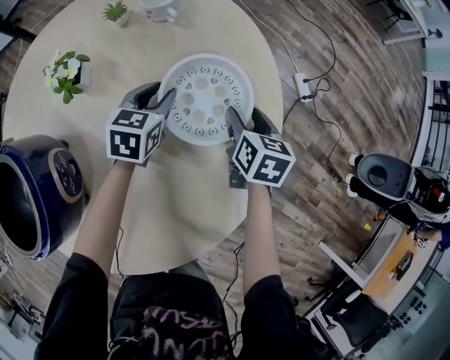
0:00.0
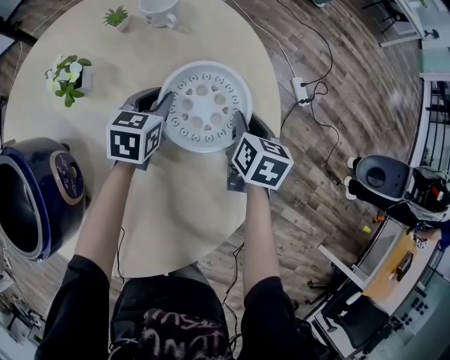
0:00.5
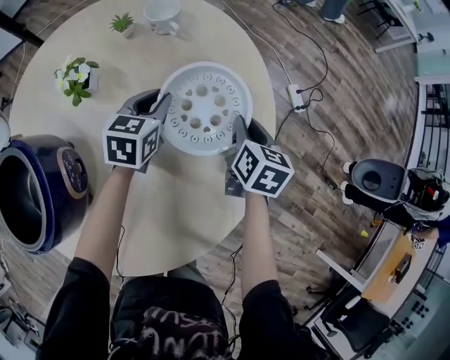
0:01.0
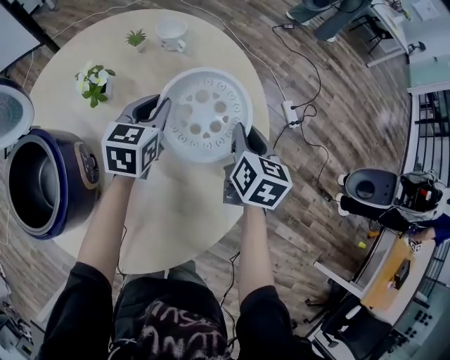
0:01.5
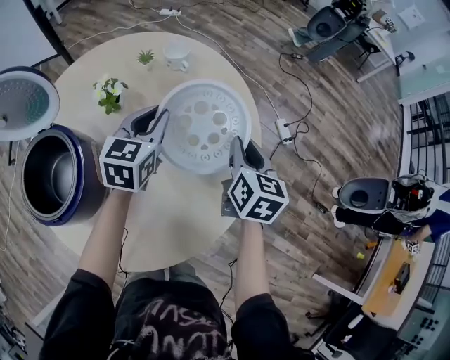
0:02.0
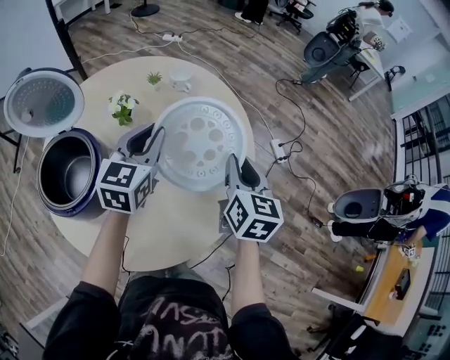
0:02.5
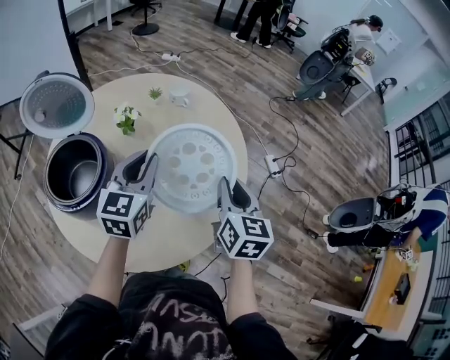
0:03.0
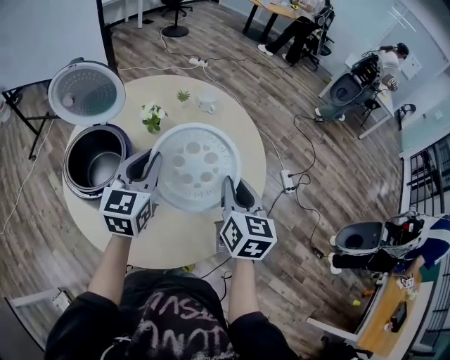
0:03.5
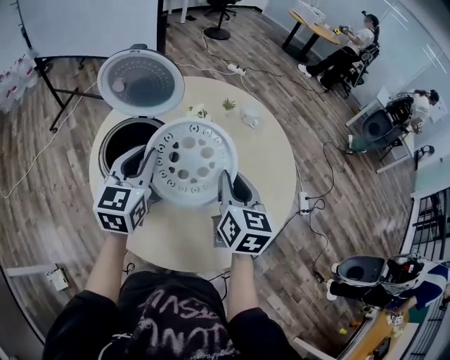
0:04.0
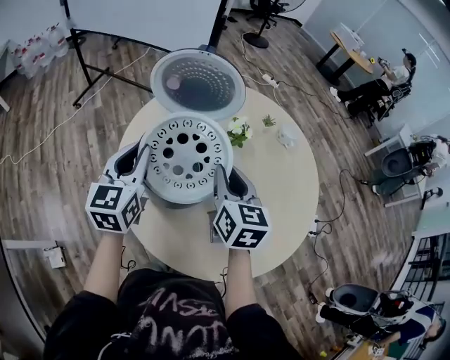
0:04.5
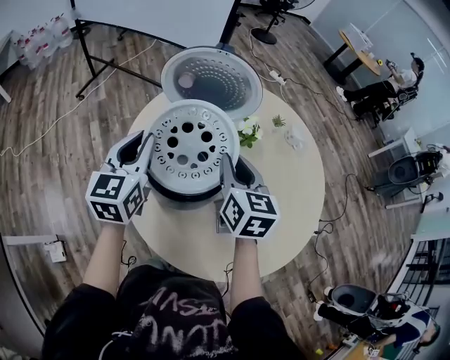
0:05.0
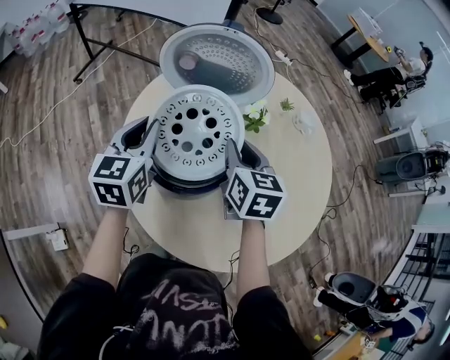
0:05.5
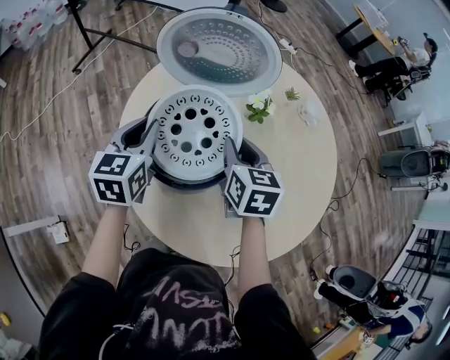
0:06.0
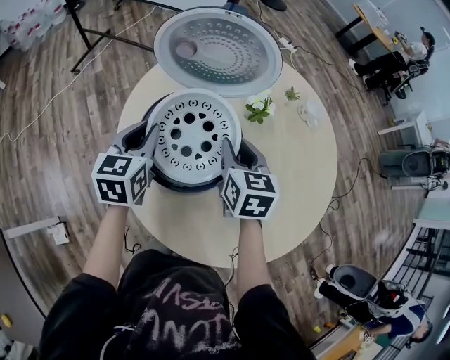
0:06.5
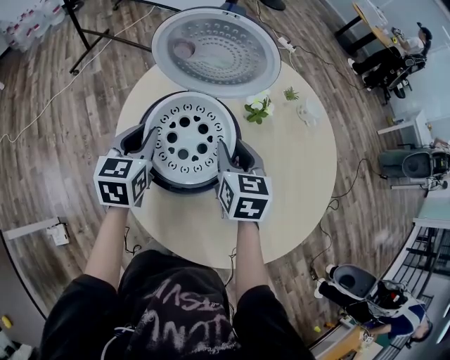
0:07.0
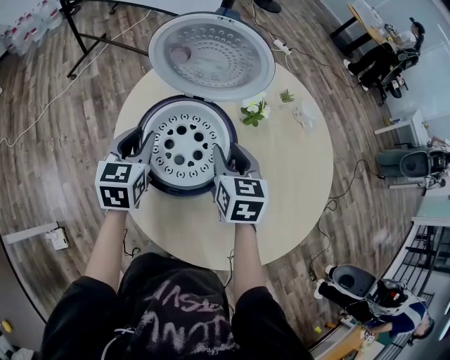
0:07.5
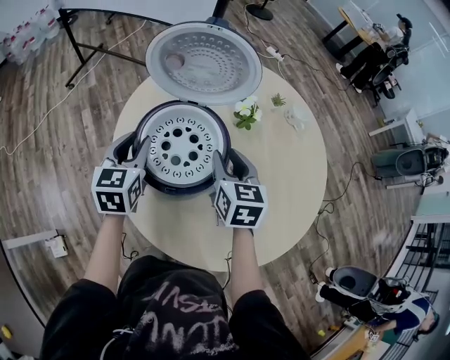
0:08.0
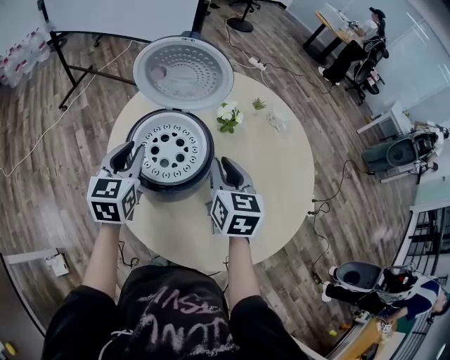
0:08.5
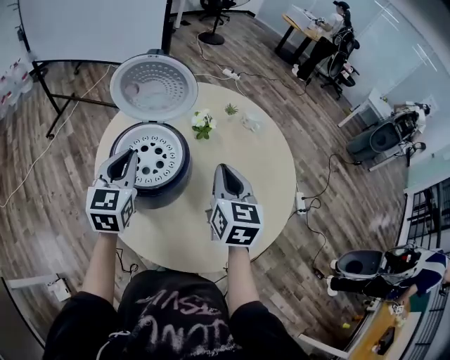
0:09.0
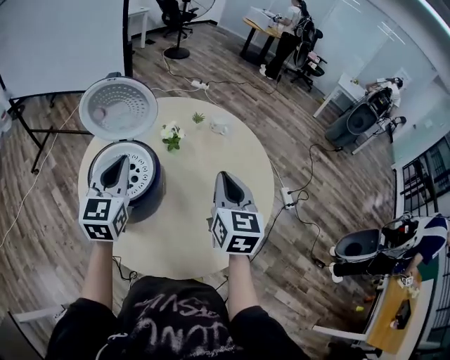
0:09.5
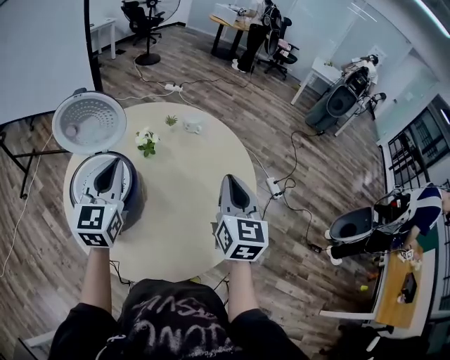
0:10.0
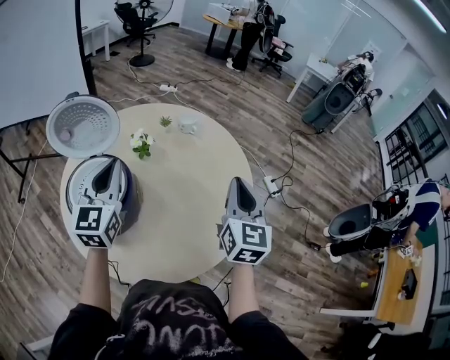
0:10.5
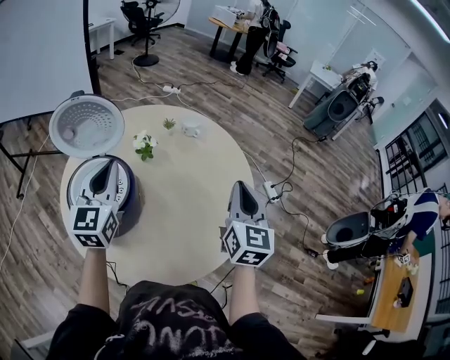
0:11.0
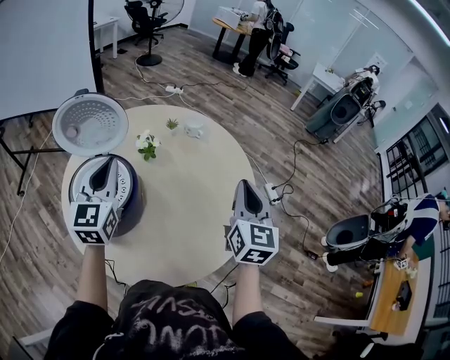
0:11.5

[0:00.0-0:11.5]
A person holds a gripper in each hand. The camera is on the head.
0:00.0 to 0:02.0: The right gripper heads upward and backward, covering roughly 20 cm, and closes. Meanwhile the left gripper is displaced upward by approximately 20 cm.
0:02.0 to 0:04.0: The right gripper moves to the left, upward and backward, about 25 cm, and turns by some 30 degrees; the left gripper moves to the left, backward and upward, roughly 30 cm, and changes its angle by about 30 degrees.
0:04.0 to 0:06.0: The left gripper is displaced to the left and downward by approximately 20 cm. Meanwhile the right gripper moves to the left, forward and downward, some 20 cm, and swivels some 20 degrees.
0:06.0 to 0:07.5: The grippers stay close to where they were, moving slightly.
0:07.5 to 0:09.5: The left gripper shifts some 20 cm upward and to the right, changes its angle by about 30 degrees, and closes up; the right gripper moves to the right, upward and backward, roughly 25 cm, rotates about 30 degrees, and closes its fingers.
0:09.5 to 0:11.5: The right gripper travels to the right by some 10 cm, while the left gripper ends up some 5 cm from where it was.

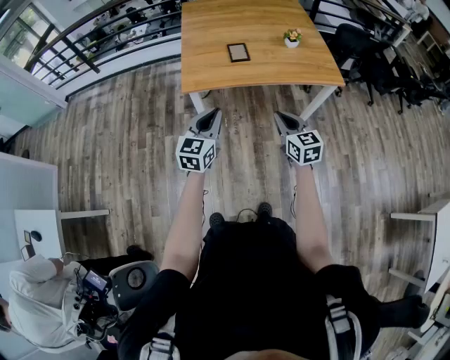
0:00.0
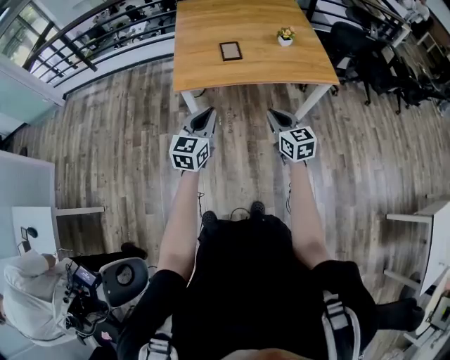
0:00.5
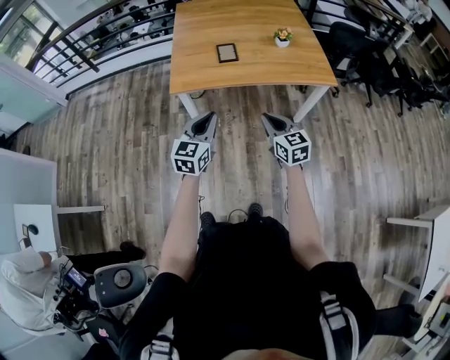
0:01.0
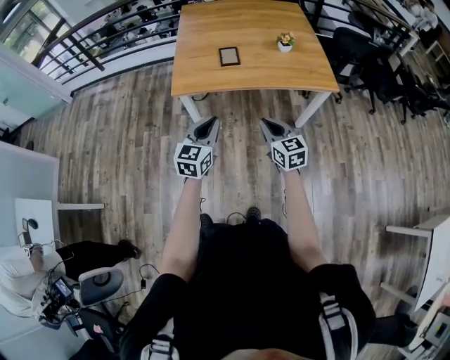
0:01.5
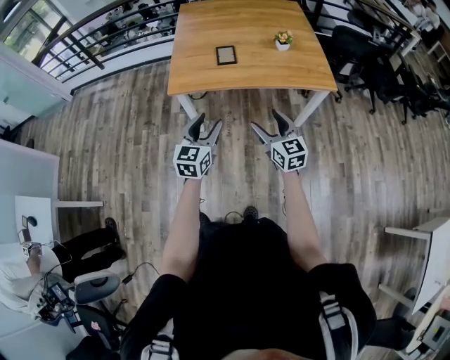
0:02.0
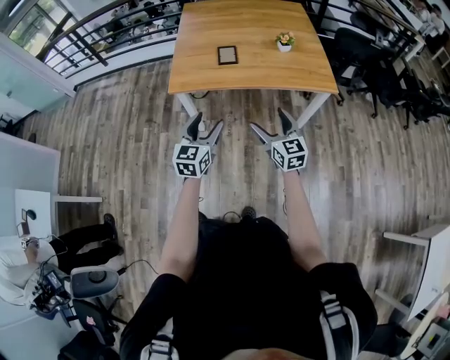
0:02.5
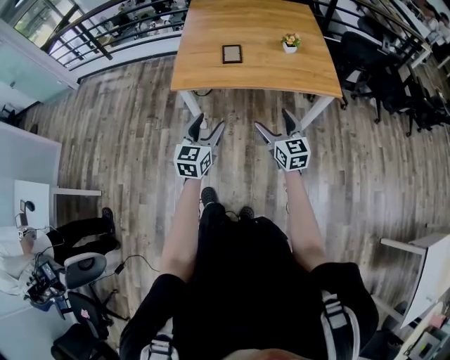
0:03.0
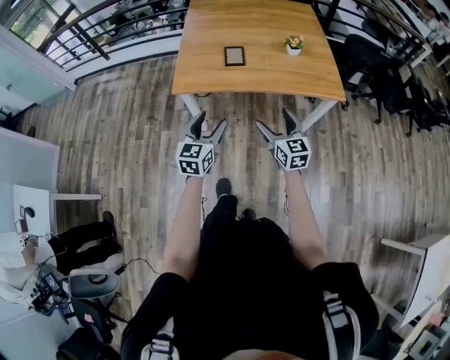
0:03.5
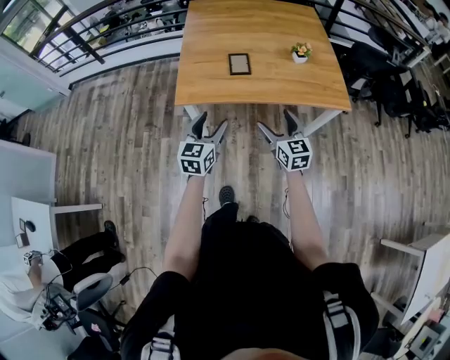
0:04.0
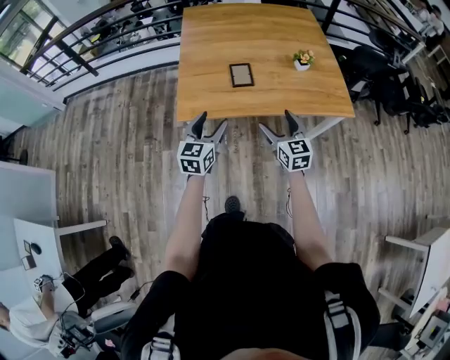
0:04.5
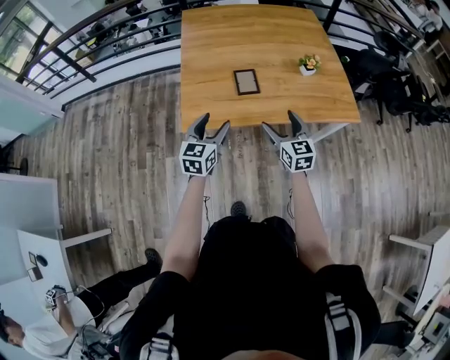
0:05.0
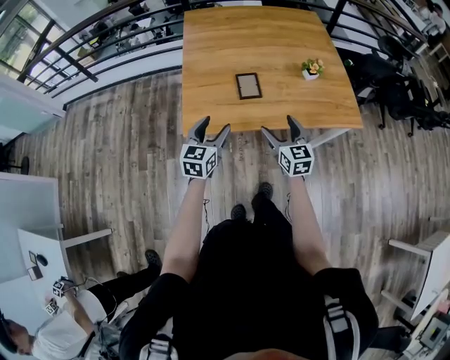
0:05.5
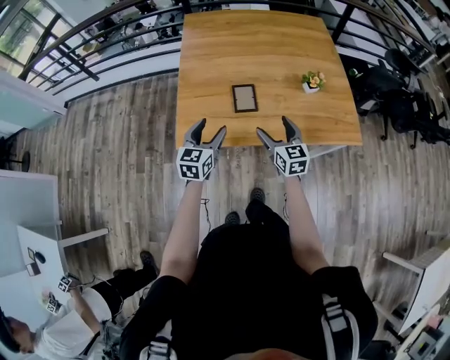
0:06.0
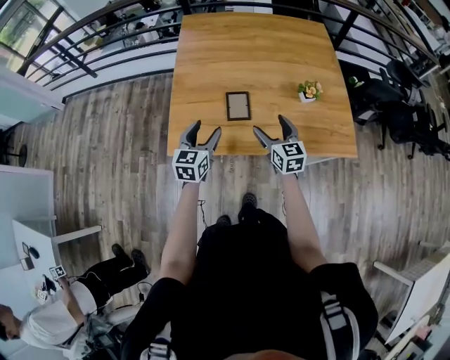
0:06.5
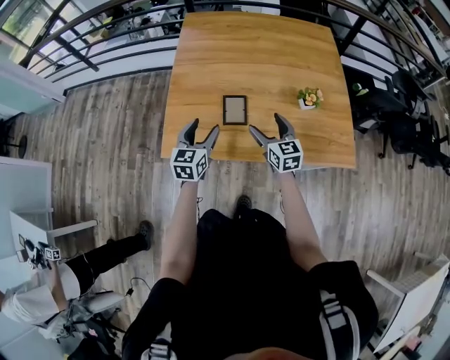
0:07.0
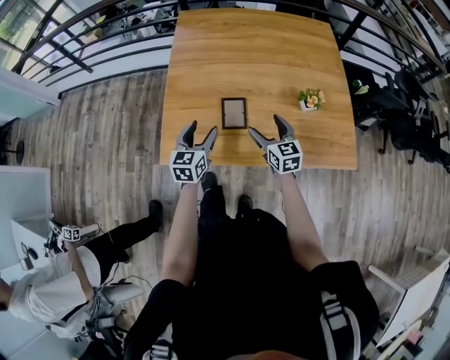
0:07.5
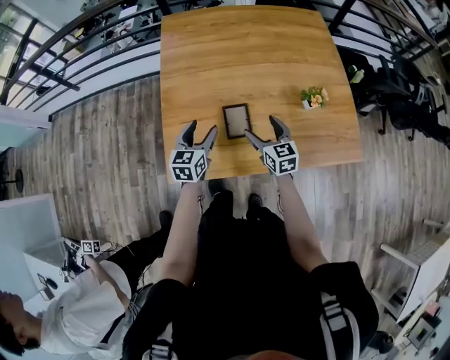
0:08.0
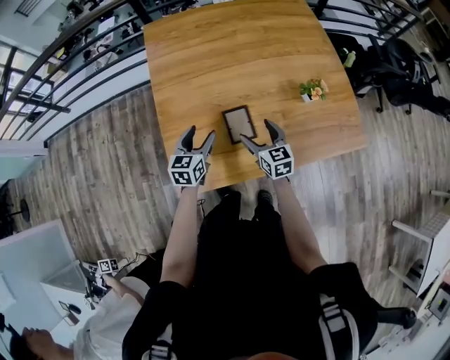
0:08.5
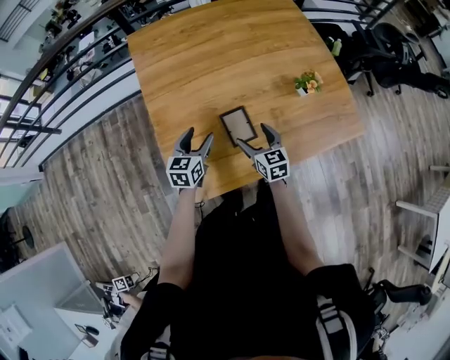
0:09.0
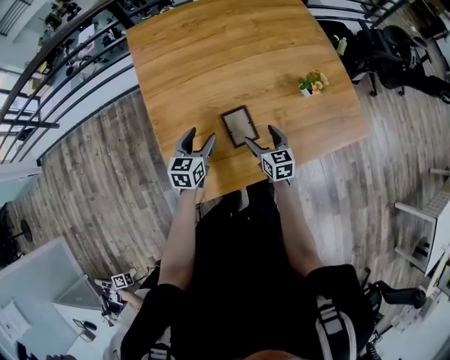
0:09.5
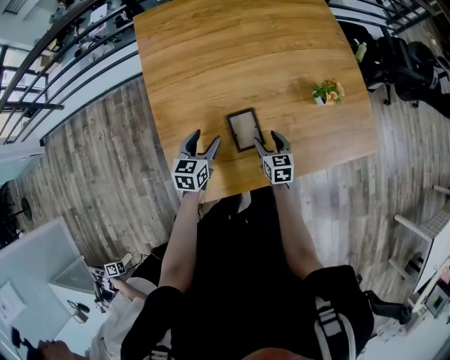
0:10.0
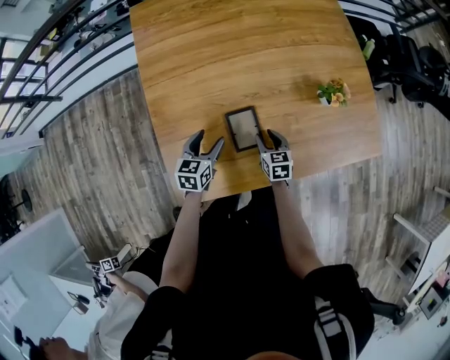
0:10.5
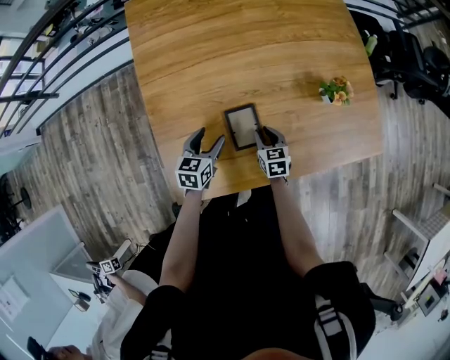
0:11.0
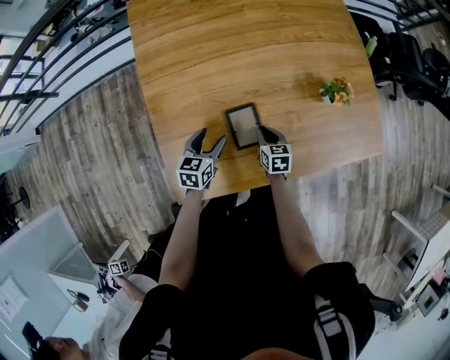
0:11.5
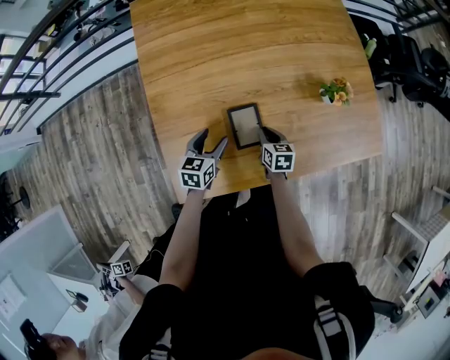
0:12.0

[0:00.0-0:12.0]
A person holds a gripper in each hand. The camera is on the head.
0:00.0 to 0:02.0: The two grippers go some 10 cm to the right. The left gripper opens; the right gripper opens.
0:02.0 to 0:04.0: Both grippers travel together forward, approximately 10 cm.
0:04.0 to 0:06.0: Both grippers travel together forward, about 20 cm.
0:06.0 to 0:08.0: The two grippers go some 15 cm forward.
0:08.0 to 0:10.0: The right gripper travels downward by some 15 cm, and rotates some 20 degrees. Meanwhile the left gripper shifts roughly 10 cm downward and forward.
0:10.0 to 0:12.0: The right gripper closes up.

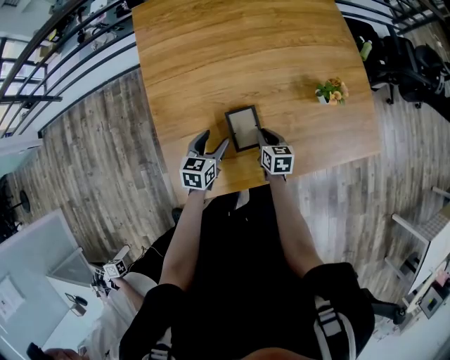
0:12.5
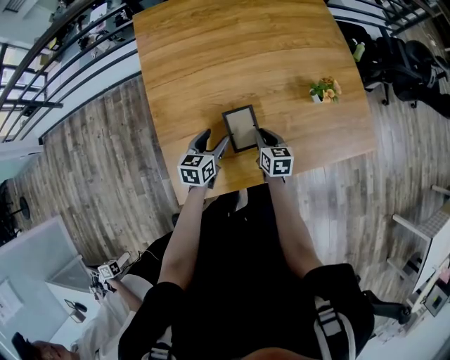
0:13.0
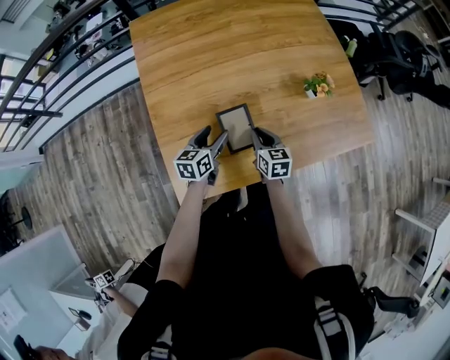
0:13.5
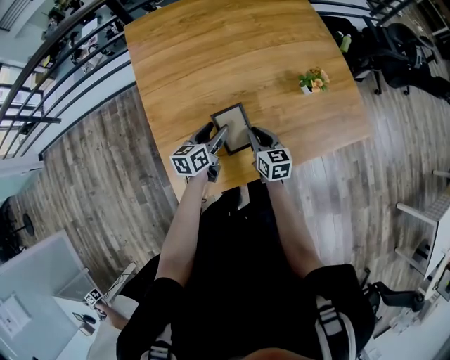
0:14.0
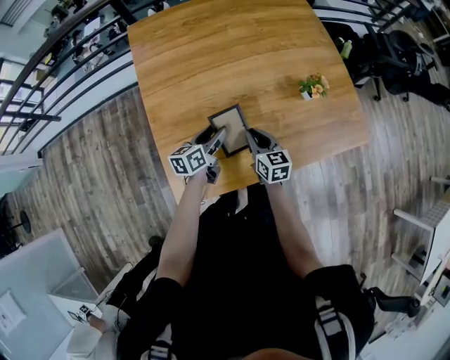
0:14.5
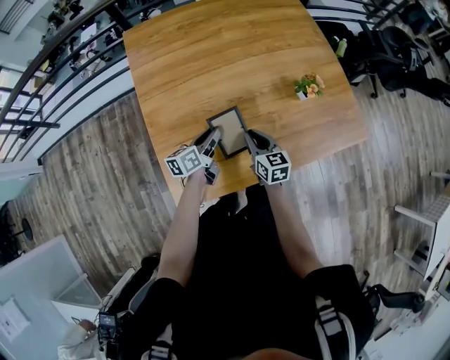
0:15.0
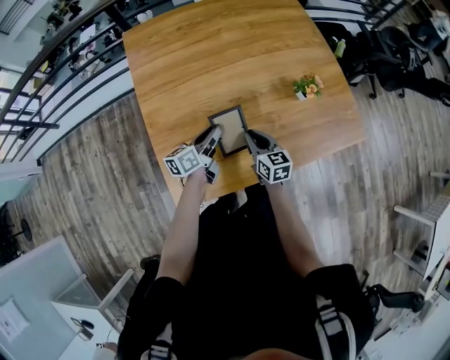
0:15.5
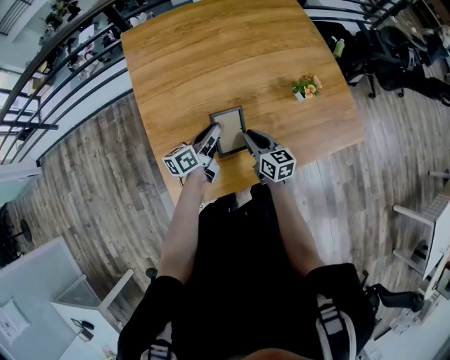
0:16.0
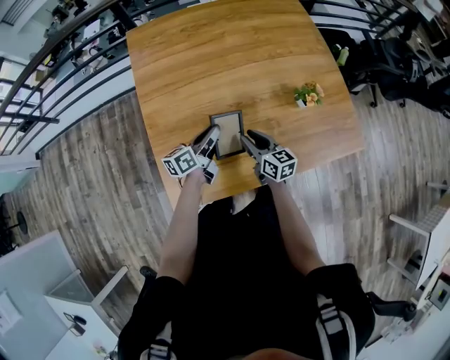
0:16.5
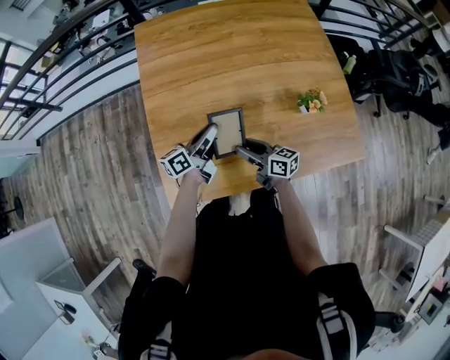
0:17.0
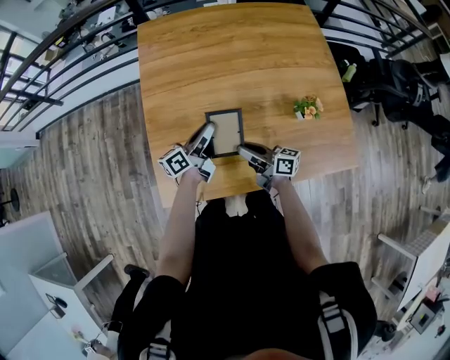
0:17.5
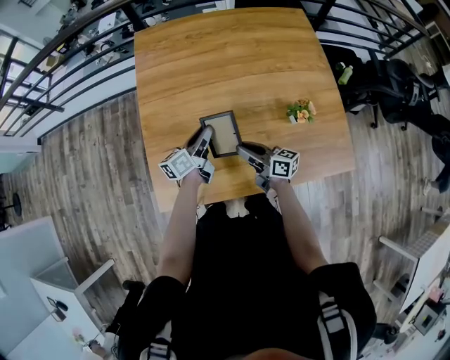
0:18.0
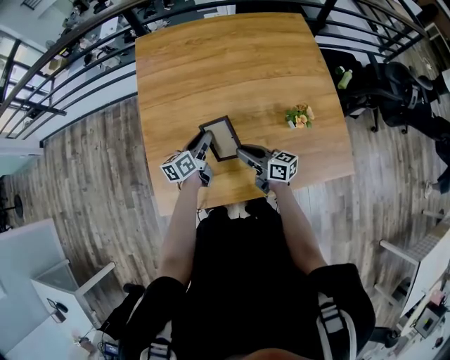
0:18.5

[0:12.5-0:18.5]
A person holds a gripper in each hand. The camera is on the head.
0:12.5 to 0:14.5: The right gripper is displaced upward by about 10 cm. The left gripper moves roughly 5 cm, and changes its angle by roughly 30 degrees.
0:14.5 to 0:16.5: The left gripper closes.
0:16.5 to 0:18.5: The right gripper turns by some 30 degrees.
